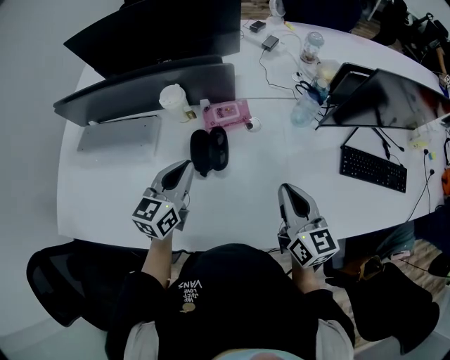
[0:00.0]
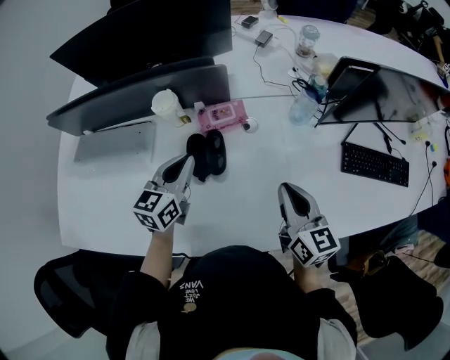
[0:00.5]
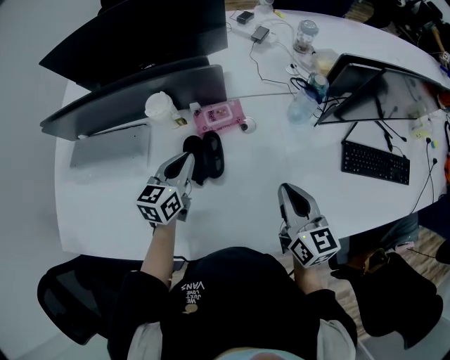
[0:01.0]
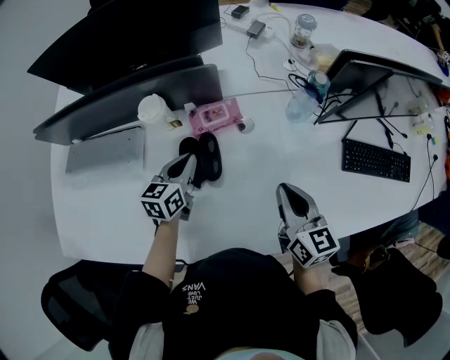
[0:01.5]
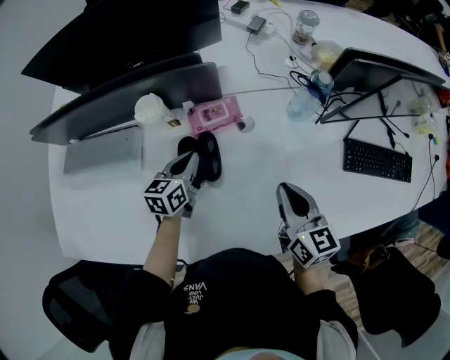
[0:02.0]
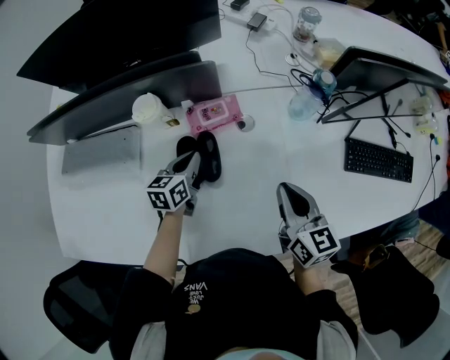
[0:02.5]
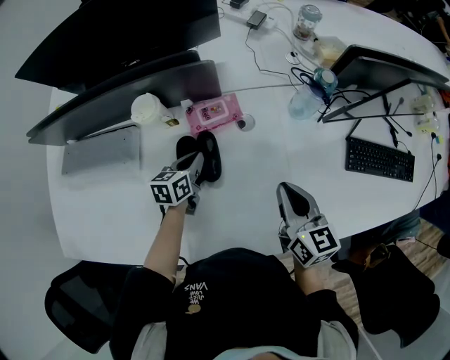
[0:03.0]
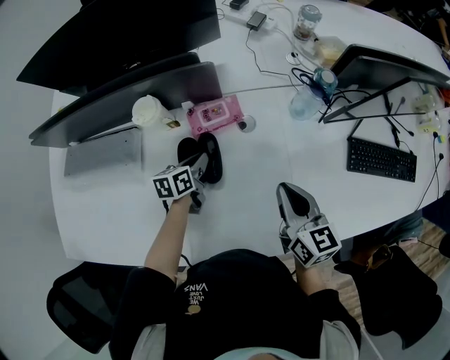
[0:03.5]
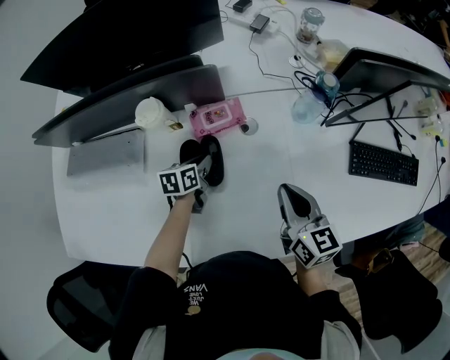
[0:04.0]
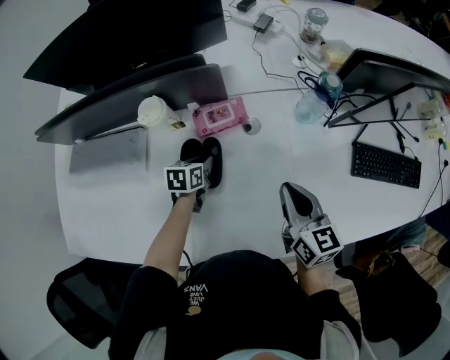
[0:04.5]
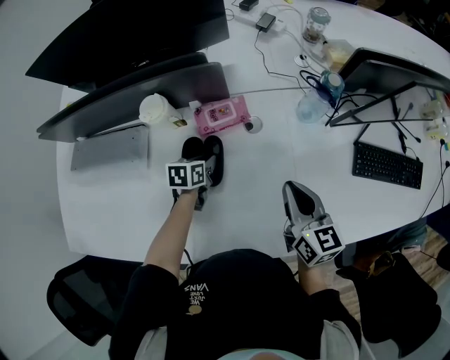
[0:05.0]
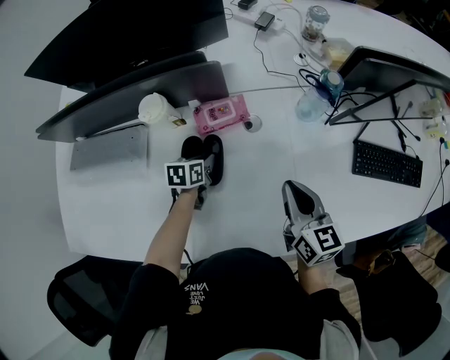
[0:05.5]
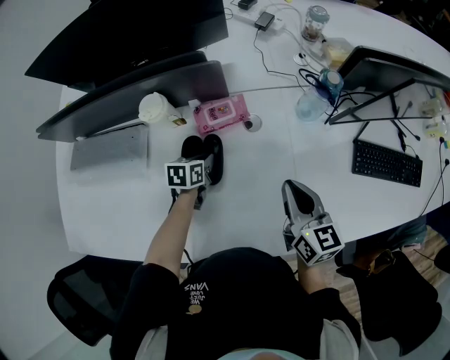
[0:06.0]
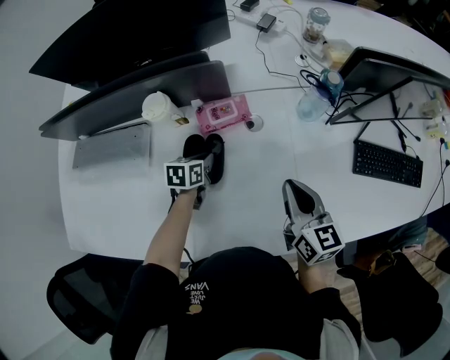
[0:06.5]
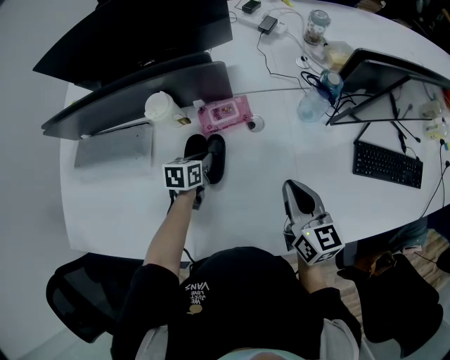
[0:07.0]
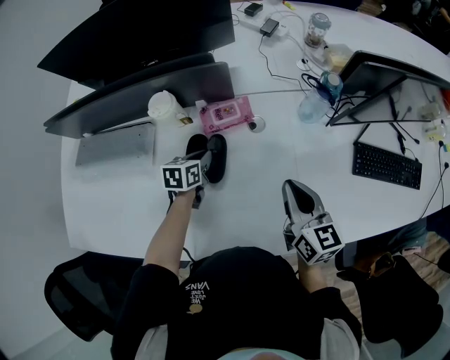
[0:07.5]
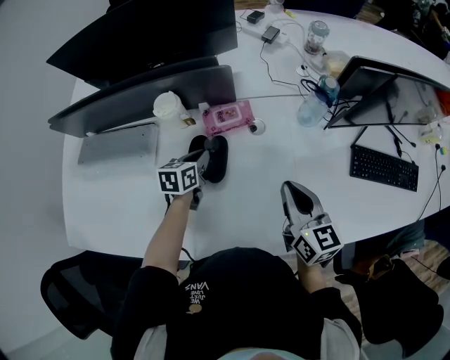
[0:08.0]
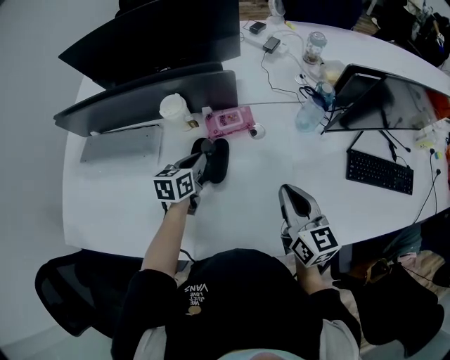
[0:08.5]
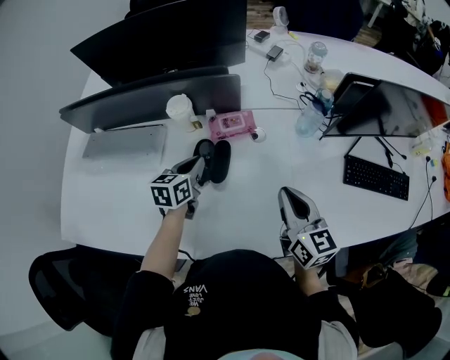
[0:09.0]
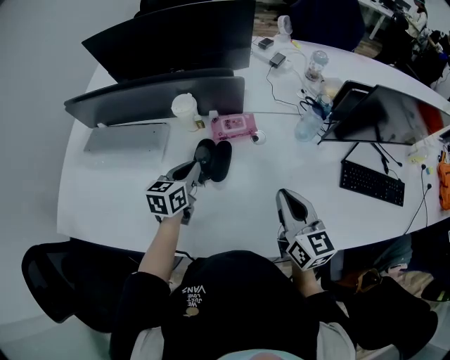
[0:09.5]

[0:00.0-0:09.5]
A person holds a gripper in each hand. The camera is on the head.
0:00.0 to 0:02.0: The left gripper is displaced downward and forward by about 15 cm; the right gripper ends up about 5 cm from where it was.
0:02.0 to 0:04.0: The left gripper goes some 10 cm downward, and rotates about 20 degrees.
0:04.0 to 0:07.5: The grippers move only a little.
0:07.5 to 0:09.5: The left gripper is displaced upward and backward by roughly 15 cm, and rotates approximately 20 degrees. The right gripper moves upward and backward, approximately 10 cm.

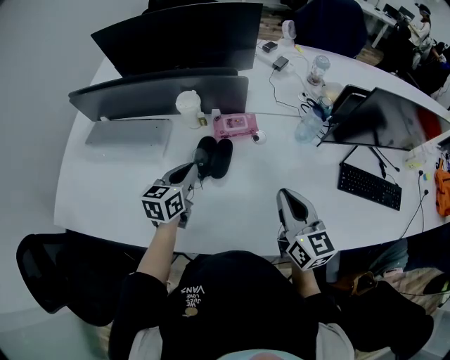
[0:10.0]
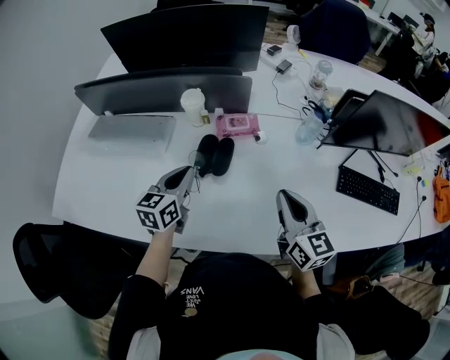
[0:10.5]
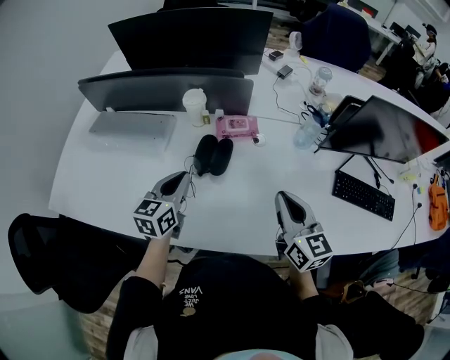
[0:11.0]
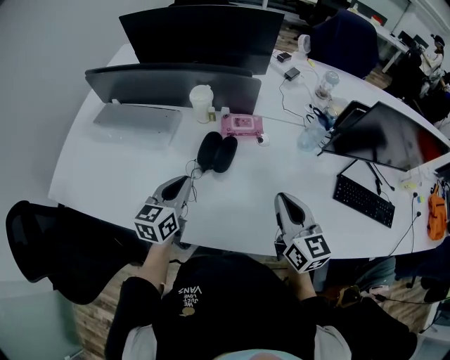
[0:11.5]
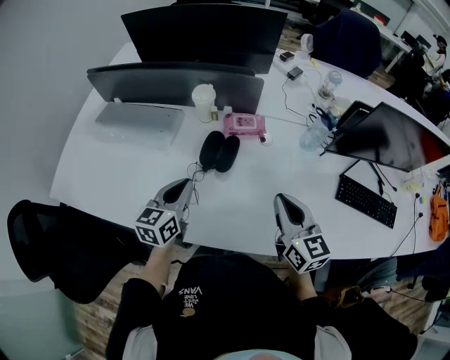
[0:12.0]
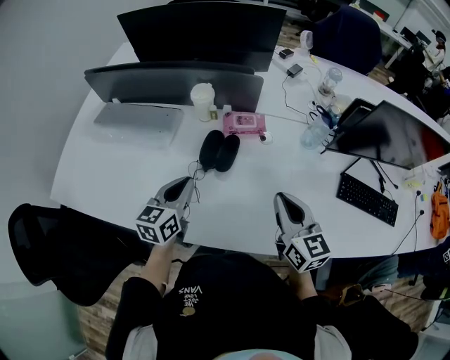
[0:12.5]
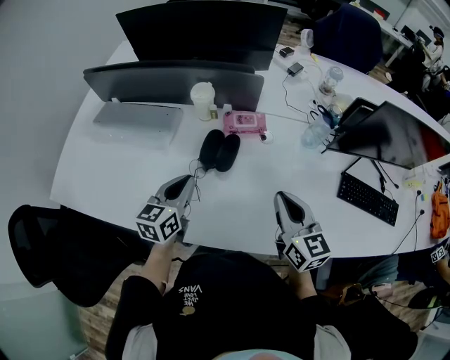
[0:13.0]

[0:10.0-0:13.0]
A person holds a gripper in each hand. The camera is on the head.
0:10.0 to 0:11.5: The left gripper moves backward, about 10 cm.
0:11.5 to 0:13.0: The grippers move only a little.

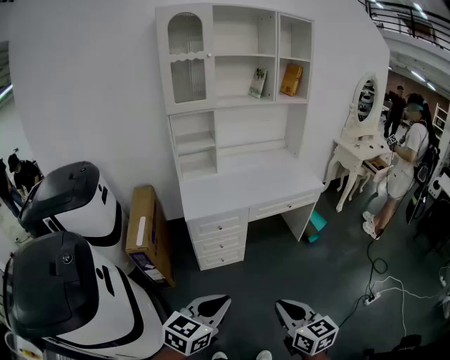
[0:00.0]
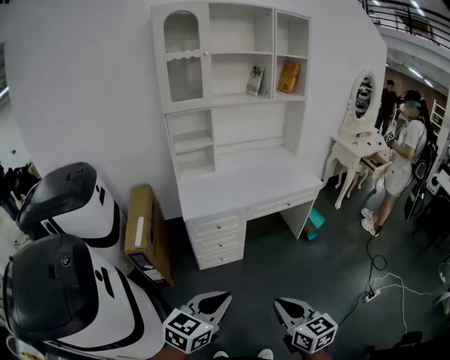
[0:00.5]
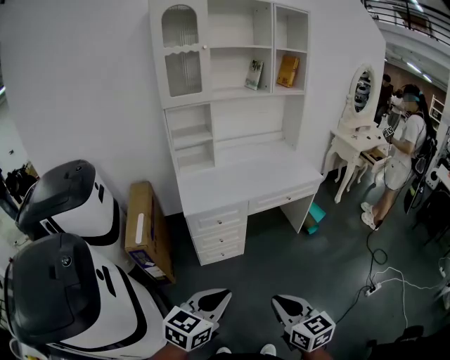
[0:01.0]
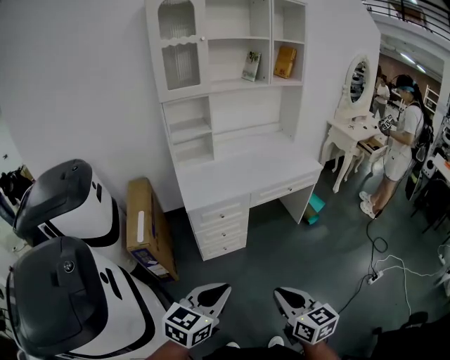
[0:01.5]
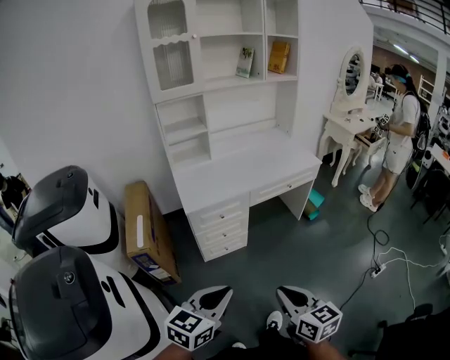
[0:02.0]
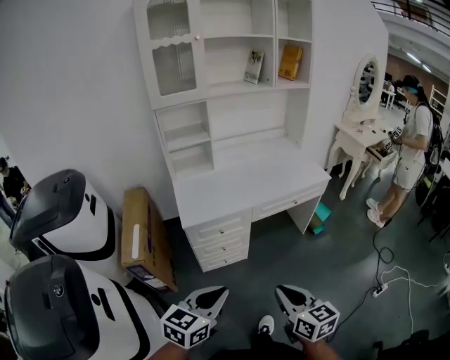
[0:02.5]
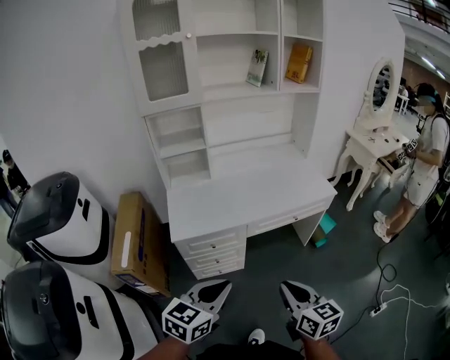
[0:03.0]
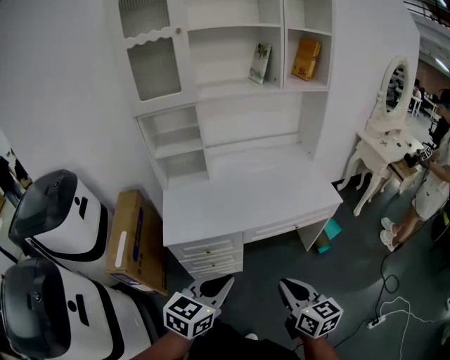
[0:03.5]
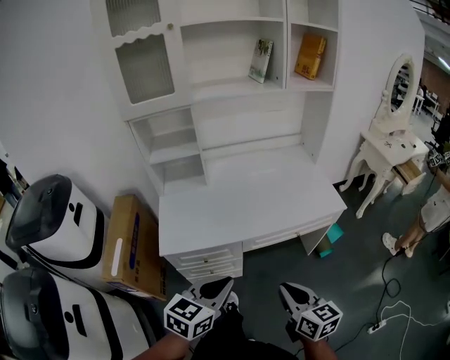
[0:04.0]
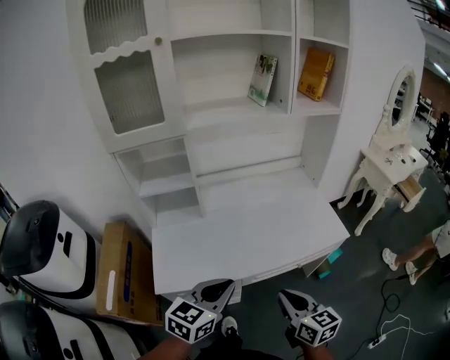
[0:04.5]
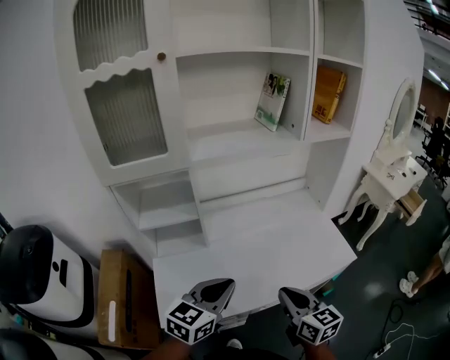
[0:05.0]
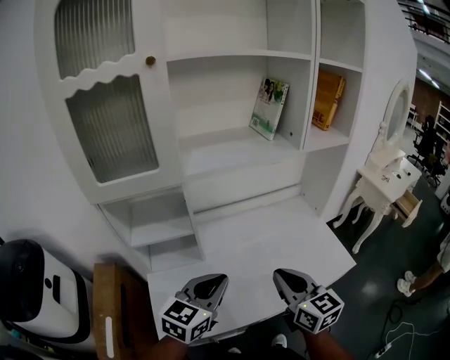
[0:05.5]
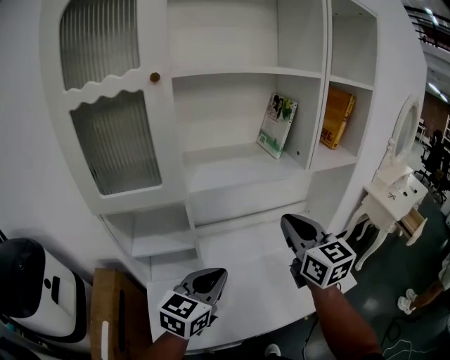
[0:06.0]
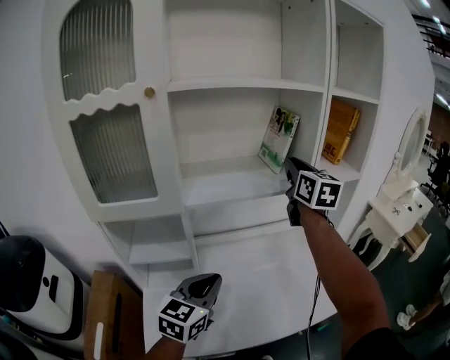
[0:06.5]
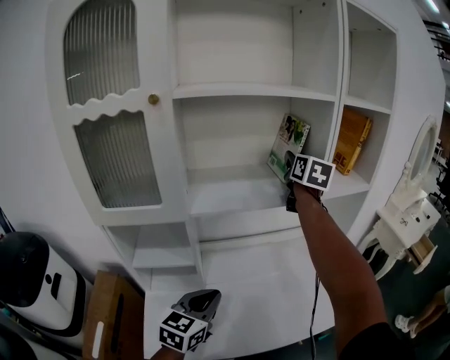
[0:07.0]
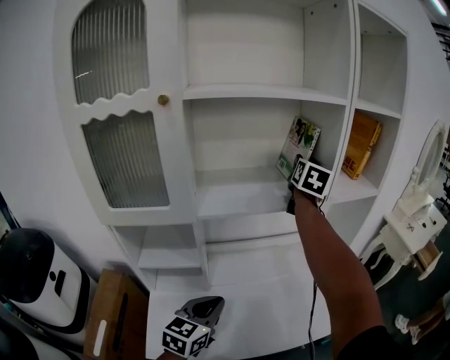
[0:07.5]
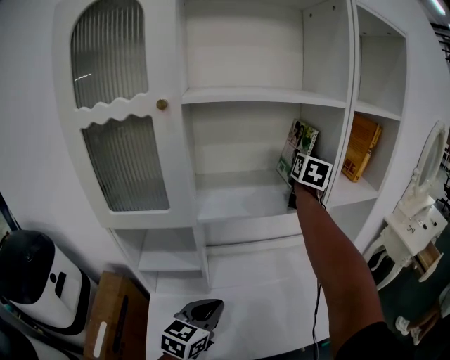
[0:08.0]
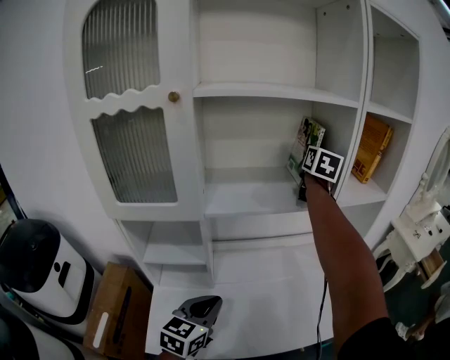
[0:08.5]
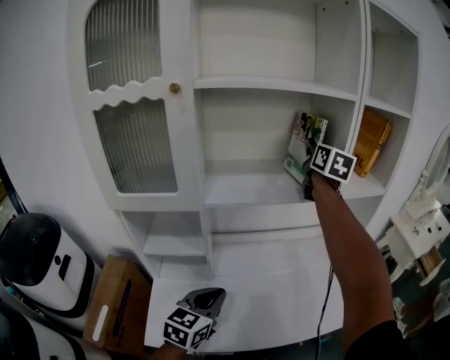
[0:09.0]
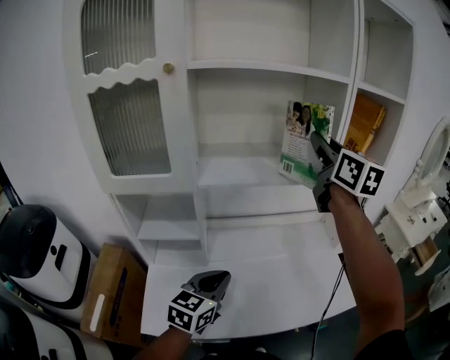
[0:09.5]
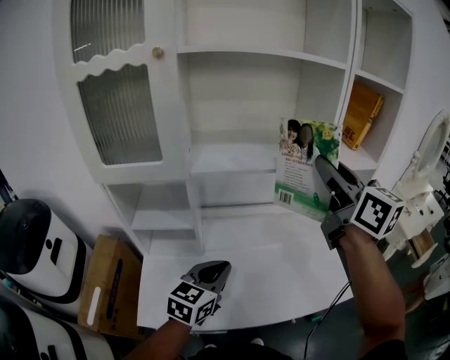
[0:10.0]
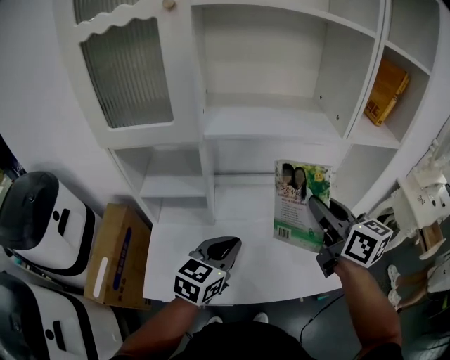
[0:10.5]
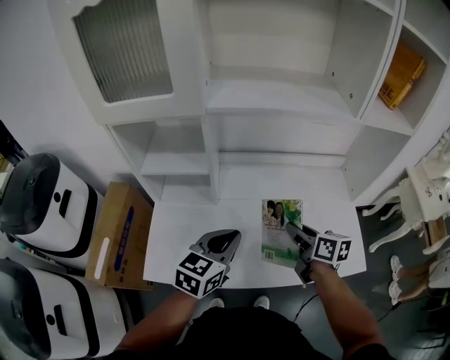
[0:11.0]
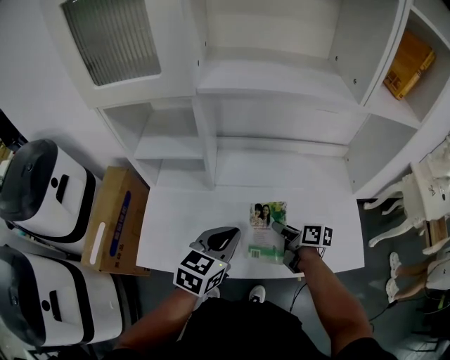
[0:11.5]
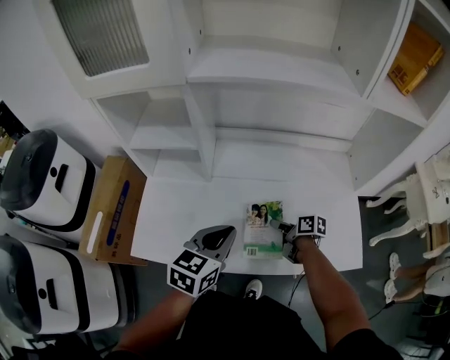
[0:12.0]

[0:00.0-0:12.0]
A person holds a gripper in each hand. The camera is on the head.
0:00.0 to 0:02.0: The grippers both shift to the left by some 5 cm.
0:02.0 to 0:04.0: The grippers both shift forward by approximately 40 cm.
0:04.0 to 0:06.0: The right gripper goes roughly 50 cm forward and upward, and turns by some 30 degrees, while the left gripper shifts some 40 cm forward.
0:06.0 to 0:08.0: The right gripper heads forward and upward, covering roughly 35 cm, rotates approximately 30 degrees, and opens up.
0:08.0 to 0:10.0: The right gripper heads backward, covering some 25 cm, swivels some 40 degrees, and closes.
0:10.0 to 0:12.0: The left gripper moves downward, roughly 10 cm. Meanwhile the right gripper moves downward, some 60 cm, and tilts its fingers about 40 degrees downward.

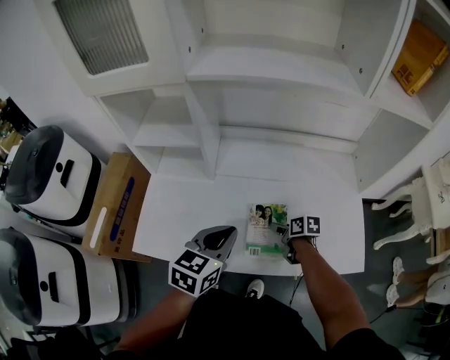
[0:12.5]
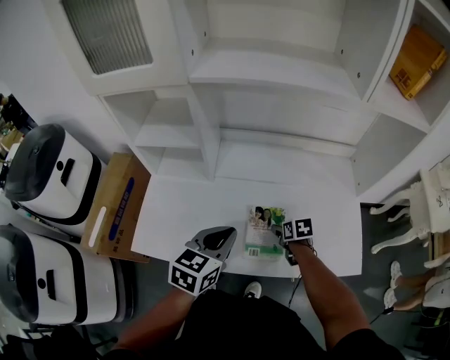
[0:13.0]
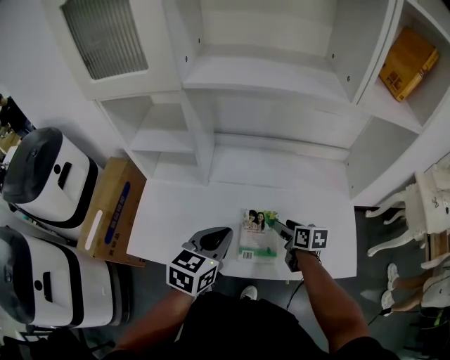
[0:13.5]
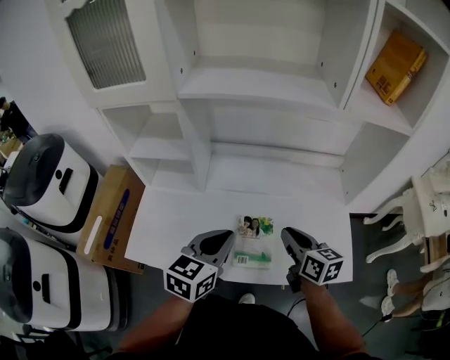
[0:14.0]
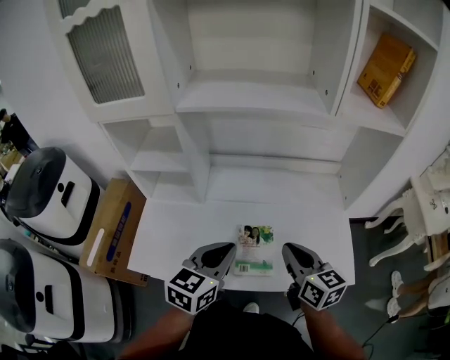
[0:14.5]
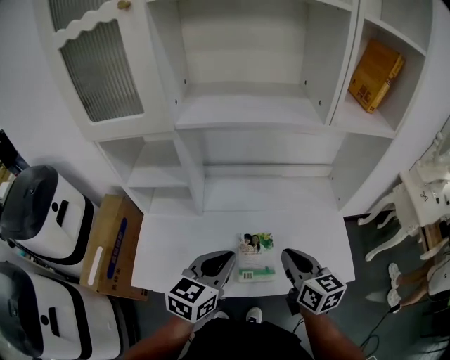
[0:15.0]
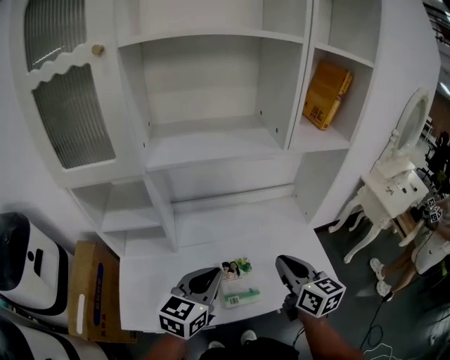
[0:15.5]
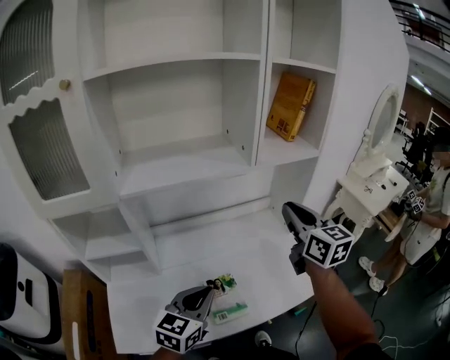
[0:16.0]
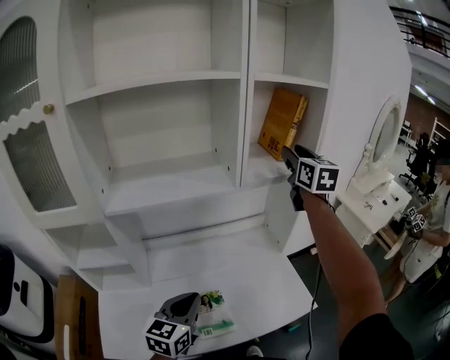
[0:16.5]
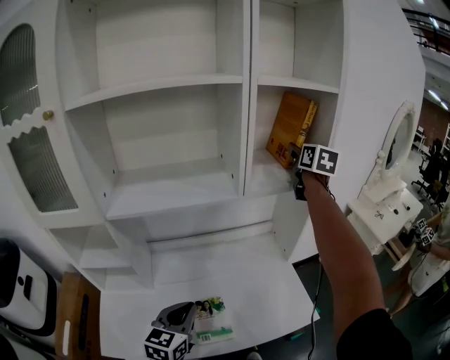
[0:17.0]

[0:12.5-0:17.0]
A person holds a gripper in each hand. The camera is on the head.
0:12.5 to 0:14.5: The left gripper shifts roughly 5 cm upward, while the right gripper is displaced upward by some 25 cm, tips its fingers upward by approximately 30 degrees, and closes its fingers.
0:14.5 to 0:17.0: The right gripper is displaced forward, upward and to the right by roughly 60 cm, turns by about 40 degrees, and opens up. Meanwhile the left gripper is displaced forward by approximately 5 cm.
